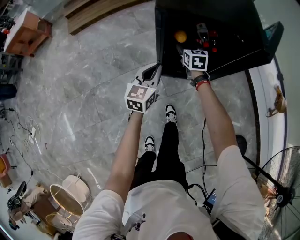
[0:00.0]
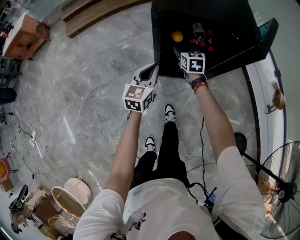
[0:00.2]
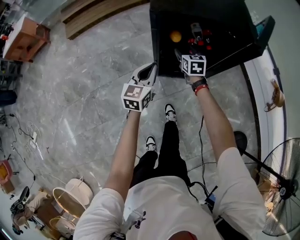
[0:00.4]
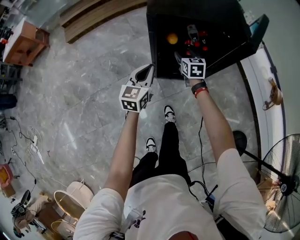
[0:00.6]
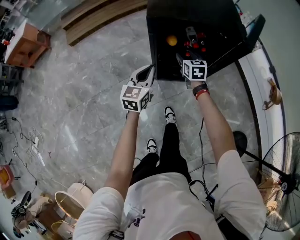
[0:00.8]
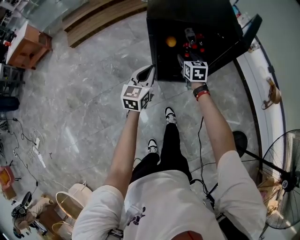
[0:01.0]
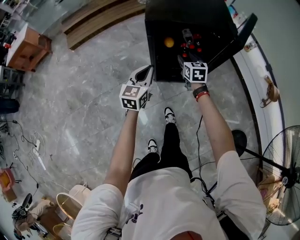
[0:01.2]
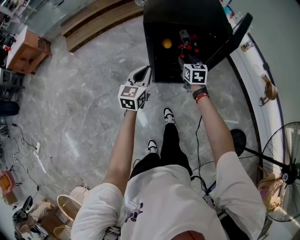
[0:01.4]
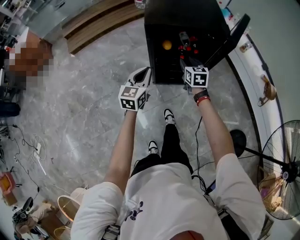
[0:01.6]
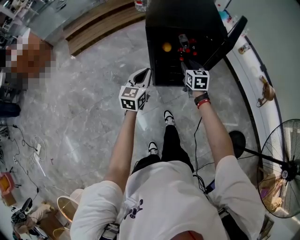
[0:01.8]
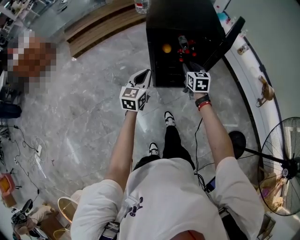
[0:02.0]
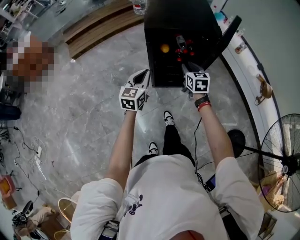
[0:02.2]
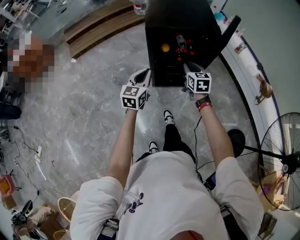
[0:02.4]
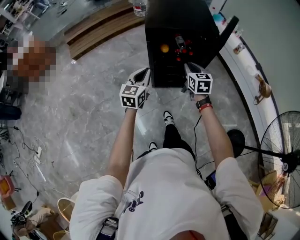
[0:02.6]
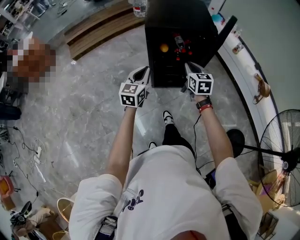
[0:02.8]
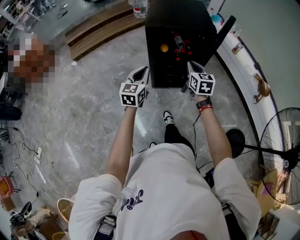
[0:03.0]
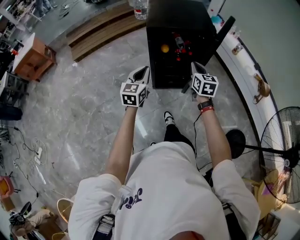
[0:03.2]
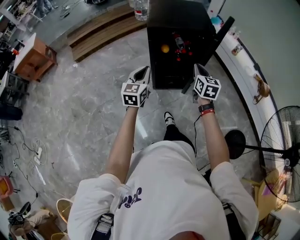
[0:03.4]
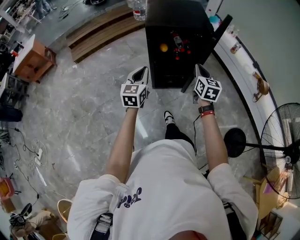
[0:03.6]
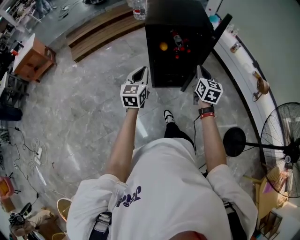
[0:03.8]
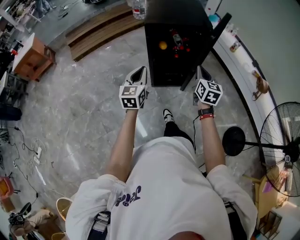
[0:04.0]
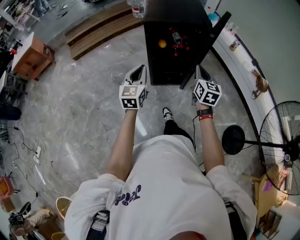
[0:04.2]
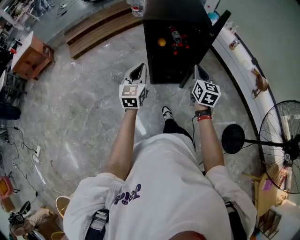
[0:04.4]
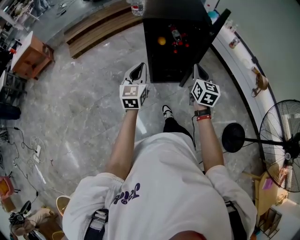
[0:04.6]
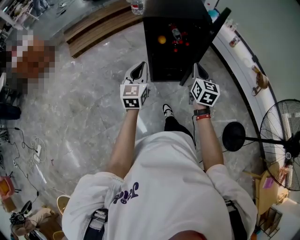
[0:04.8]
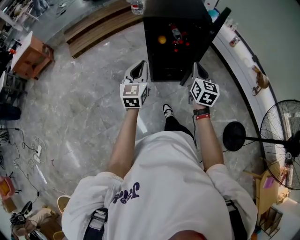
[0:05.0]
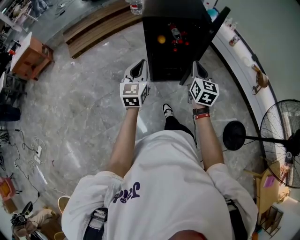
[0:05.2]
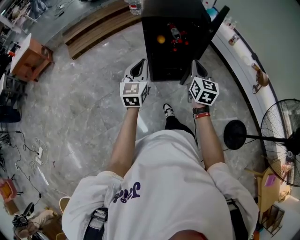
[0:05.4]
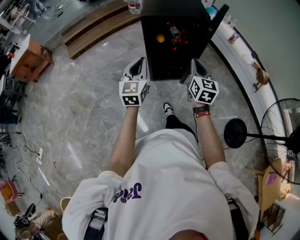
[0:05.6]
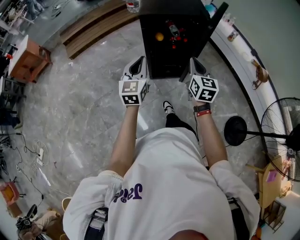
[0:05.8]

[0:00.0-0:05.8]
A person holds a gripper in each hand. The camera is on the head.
0:00.0 to 0:01.4: The right gripper is displaced backward, upward and to the right by about 20 cm, and closes its fingers. The left gripper is displaced upward and backward by some 10 cm.
0:01.4 to 0:02.8: The left gripper is displaced upward and backward by about 10 cm; the right gripper moves backward and upward, roughly 15 cm, and closes its fingers.
0:02.8 to 0:04.4: The left gripper goes about 10 cm backward. The right gripper goes roughly 15 cm backward and to the right.
0:04.4 to 0:05.8: There are only small adjustments of the grippers.

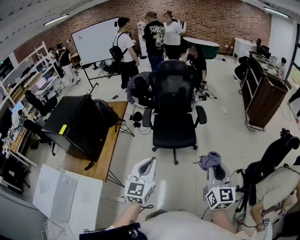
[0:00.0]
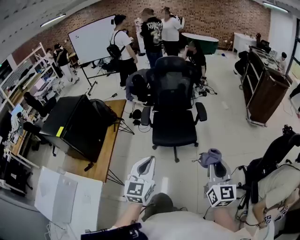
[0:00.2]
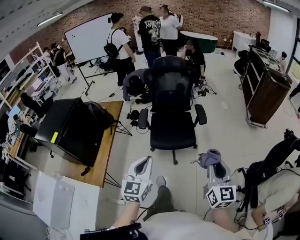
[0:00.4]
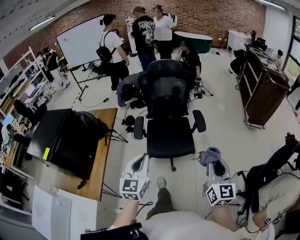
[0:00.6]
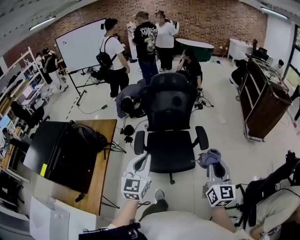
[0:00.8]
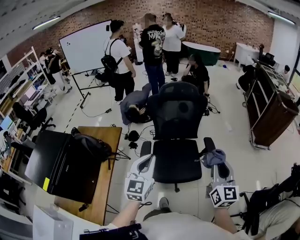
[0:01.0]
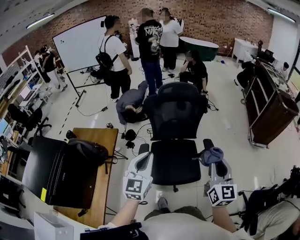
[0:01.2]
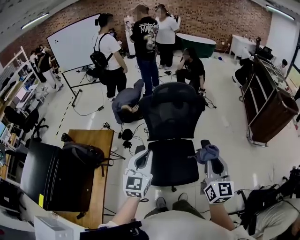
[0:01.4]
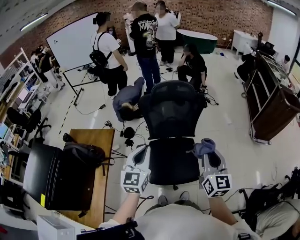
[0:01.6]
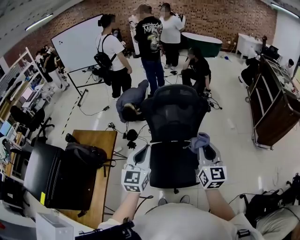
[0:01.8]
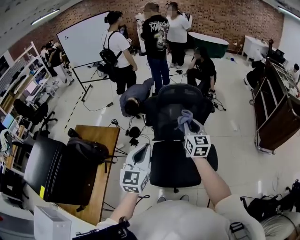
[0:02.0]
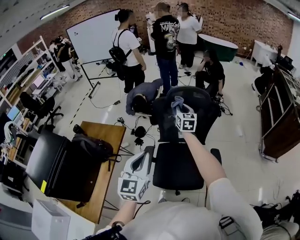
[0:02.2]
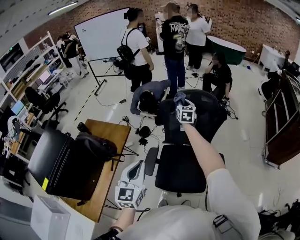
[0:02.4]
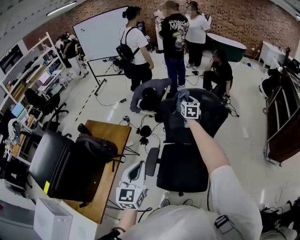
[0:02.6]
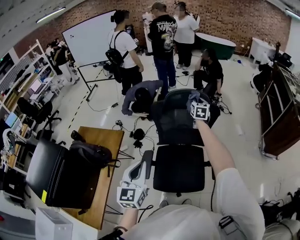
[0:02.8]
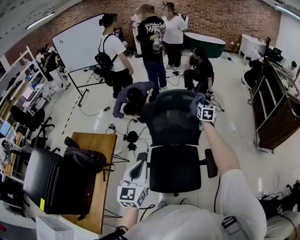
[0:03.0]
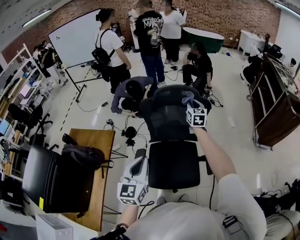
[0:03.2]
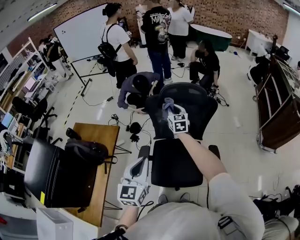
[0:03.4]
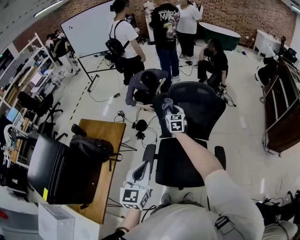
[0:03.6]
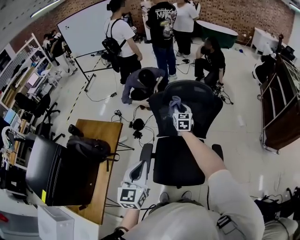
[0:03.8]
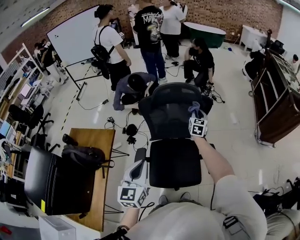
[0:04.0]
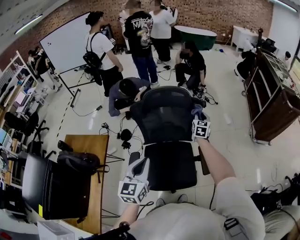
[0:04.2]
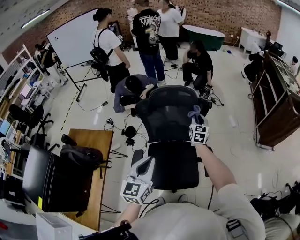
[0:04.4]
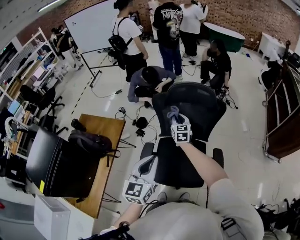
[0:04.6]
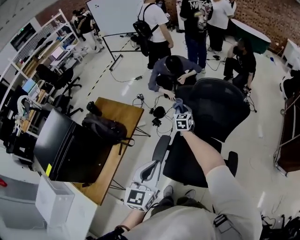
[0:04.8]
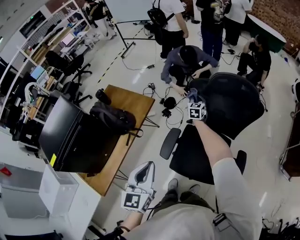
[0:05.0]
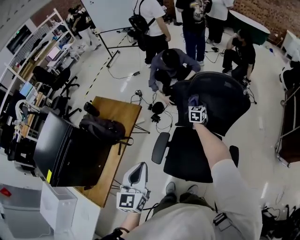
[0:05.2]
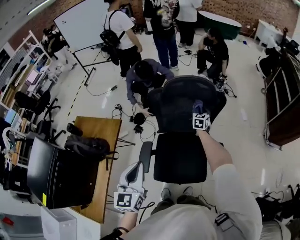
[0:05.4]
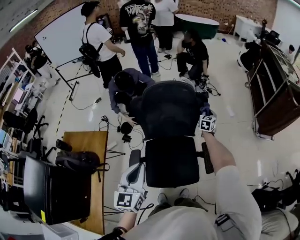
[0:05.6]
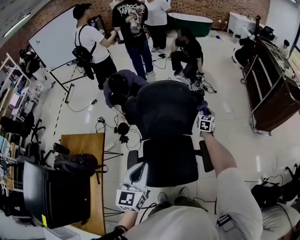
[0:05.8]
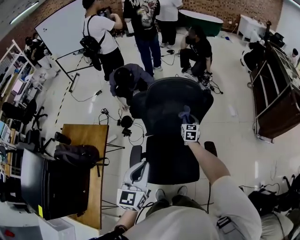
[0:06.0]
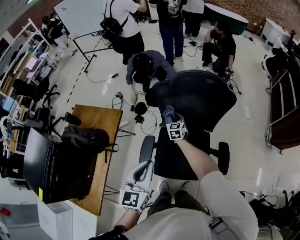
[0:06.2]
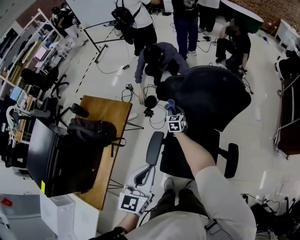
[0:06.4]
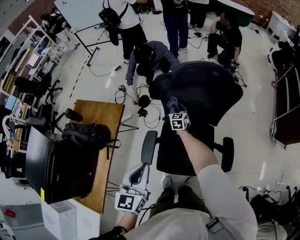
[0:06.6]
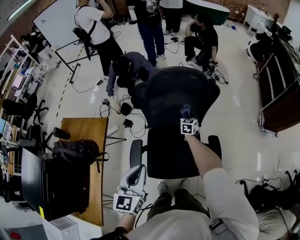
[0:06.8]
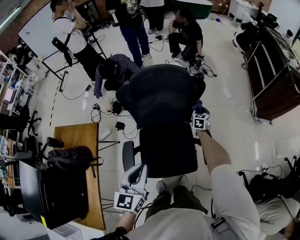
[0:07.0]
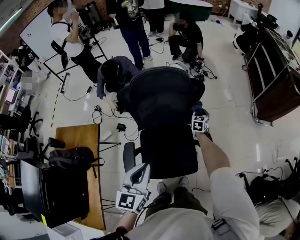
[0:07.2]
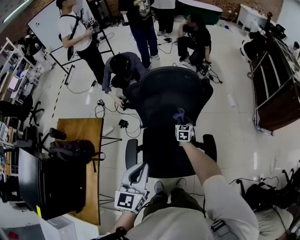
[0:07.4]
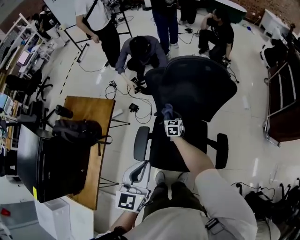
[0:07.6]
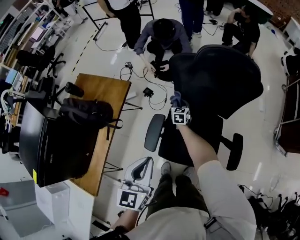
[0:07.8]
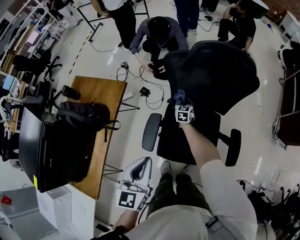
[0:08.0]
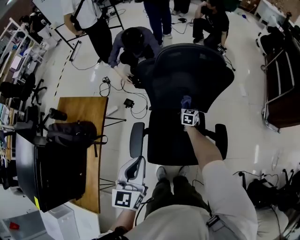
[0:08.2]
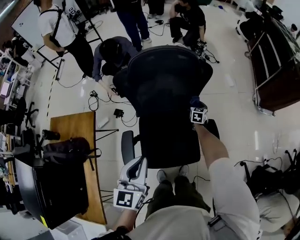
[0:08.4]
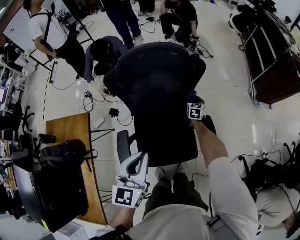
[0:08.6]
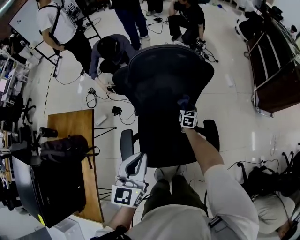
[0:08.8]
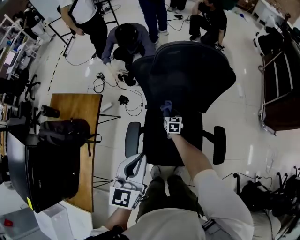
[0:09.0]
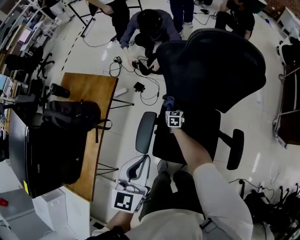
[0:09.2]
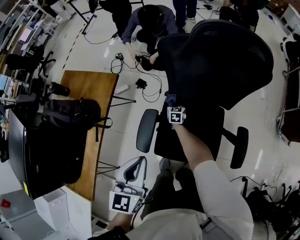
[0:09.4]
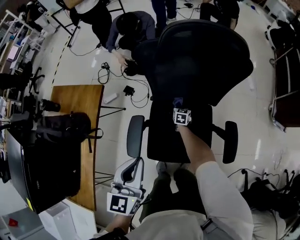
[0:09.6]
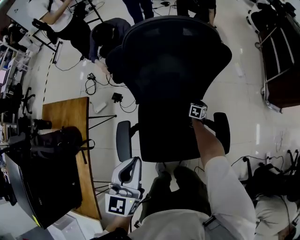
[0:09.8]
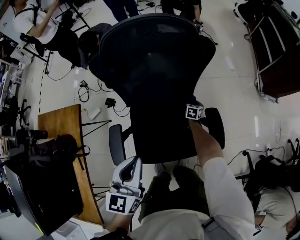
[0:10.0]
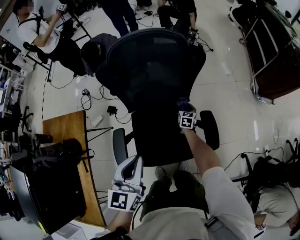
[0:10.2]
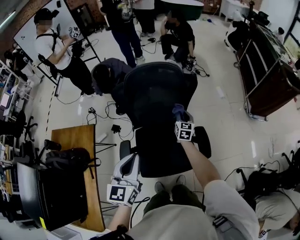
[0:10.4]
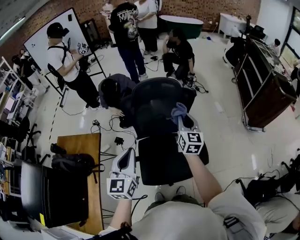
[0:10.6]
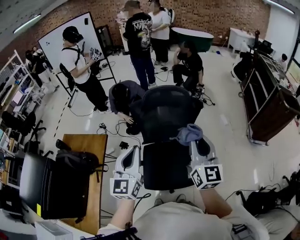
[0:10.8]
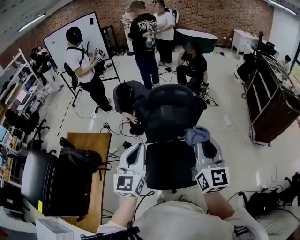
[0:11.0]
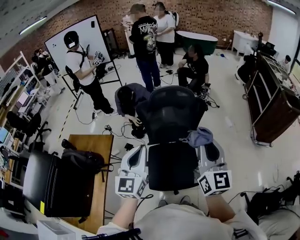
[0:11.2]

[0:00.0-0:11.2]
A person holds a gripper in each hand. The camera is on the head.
0:00.0 to 0:01.6: The two grippers travel together, forward, about 60 cm.
0:01.6 to 0:03.2: The right gripper shifts roughly 40 cm forward, and rotates some 20 degrees.
0:03.2 to 0:04.8: The left gripper travels to the right by about 5 cm; the right gripper goes left and right, about 30 cm each way, reversing 2 times.
0:04.8 to 0:06.4: The right gripper shifts some 10 cm downward; the left gripper shifts by approximately 10 cm.
0:06.4 to 0:08.0: The left gripper changes place by about 10 cm.
0:08.0 to 0:09.6: The left gripper heads downward, covering some 5 cm; the right gripper is displaced downward by approximately 20 cm.
0:09.6 to 0:11.2: The right gripper heads upward and backward, covering approximately 90 cm, and angles its fingers upward, by roughly 60 degrees. The left gripper shifts roughly 30 cm backward and upward, and turns by approximately 20 degrees.

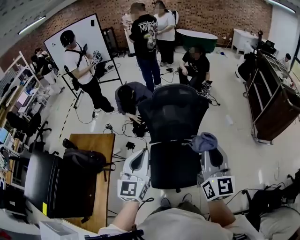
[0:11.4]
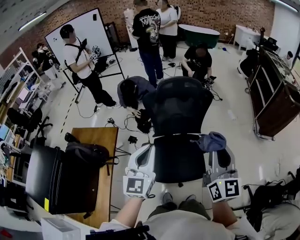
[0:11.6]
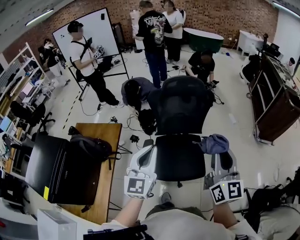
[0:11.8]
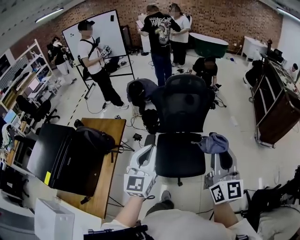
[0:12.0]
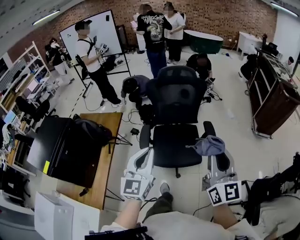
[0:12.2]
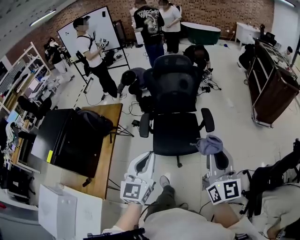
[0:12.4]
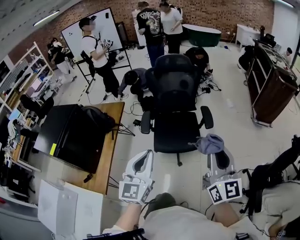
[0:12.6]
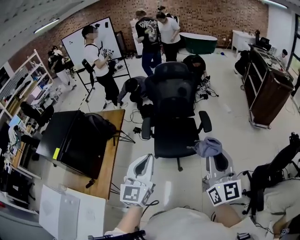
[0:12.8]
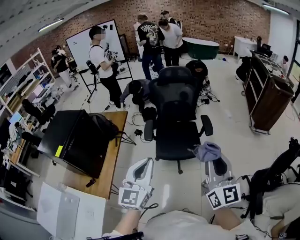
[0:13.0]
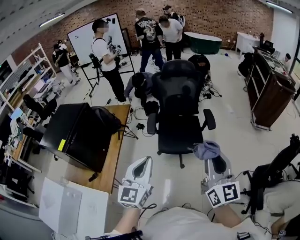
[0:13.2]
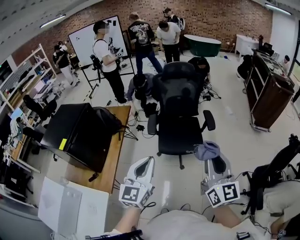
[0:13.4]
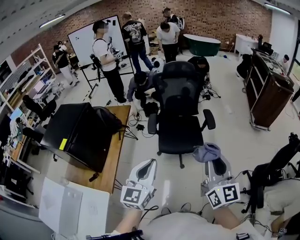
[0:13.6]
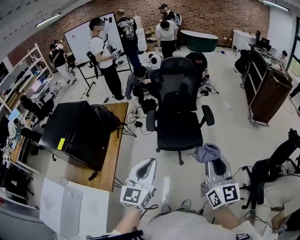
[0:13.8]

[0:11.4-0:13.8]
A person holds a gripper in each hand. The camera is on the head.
0:11.4 to 0:12.6: The grippers both shift backward by some 40 cm.
0:12.6 to 0:13.8: Both grippers move backward and to the left, some 15 cm.

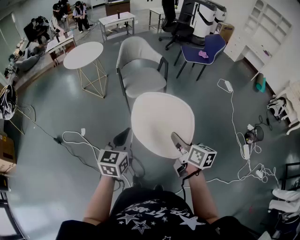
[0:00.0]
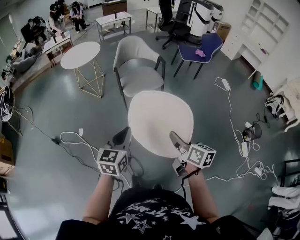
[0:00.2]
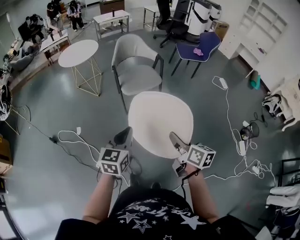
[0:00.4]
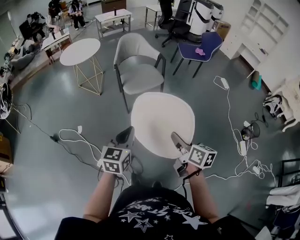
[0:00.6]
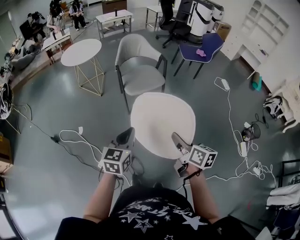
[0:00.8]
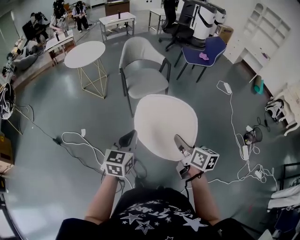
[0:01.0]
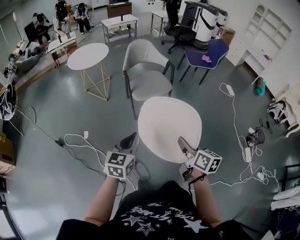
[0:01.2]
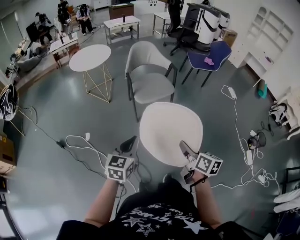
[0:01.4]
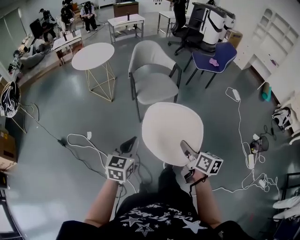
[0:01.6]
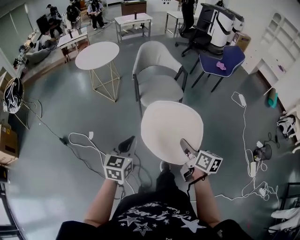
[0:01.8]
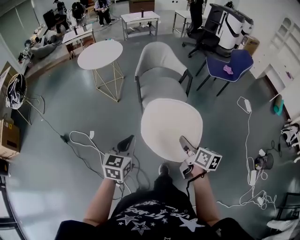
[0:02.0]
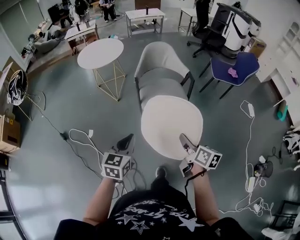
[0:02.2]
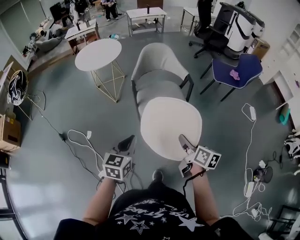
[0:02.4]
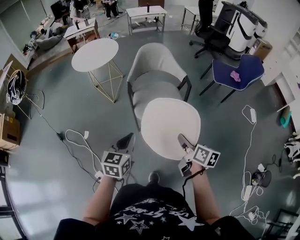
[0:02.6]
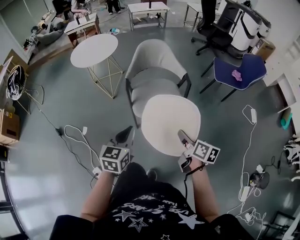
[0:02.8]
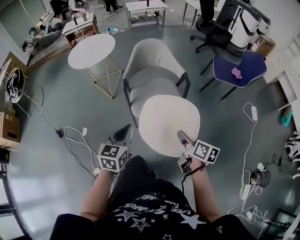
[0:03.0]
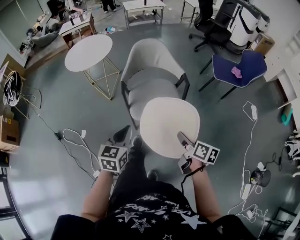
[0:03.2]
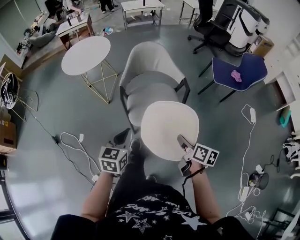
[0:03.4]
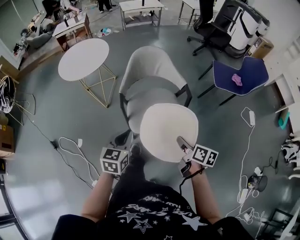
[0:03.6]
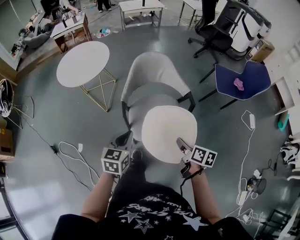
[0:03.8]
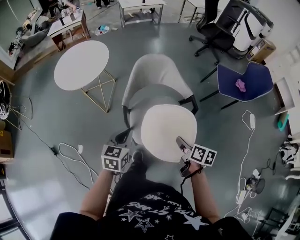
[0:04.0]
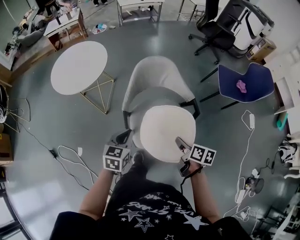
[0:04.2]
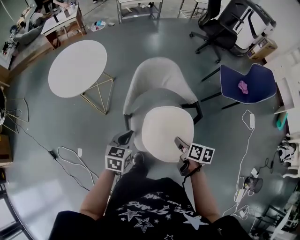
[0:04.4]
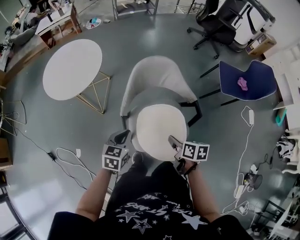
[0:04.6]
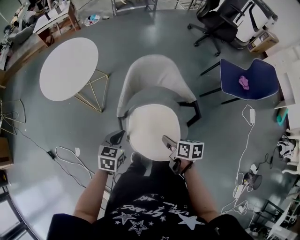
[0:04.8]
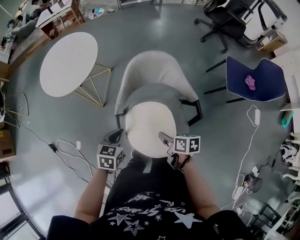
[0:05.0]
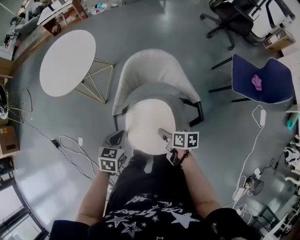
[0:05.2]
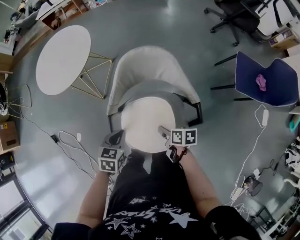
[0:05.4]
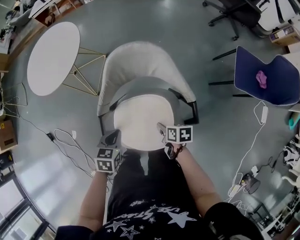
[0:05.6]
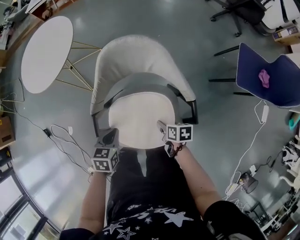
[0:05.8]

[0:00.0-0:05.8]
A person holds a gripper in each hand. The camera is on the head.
0:00.0 to 0:01.4: The right gripper moves roughly 5 cm. Meanwhile the left gripper moves to the left, roughly 5 cm.
0:01.4 to 0:02.8: Both grippers move forward and to the right, approximately 35 cm.
0:02.8 to 0:04.4: The grippers both shift forward by about 30 cm.
0:04.4 to 0:05.8: The left gripper travels downward and to the right by about 15 cm, and changes its angle by approximately 20 degrees. The right gripper shifts approximately 20 cm downward and forward, and rotates some 30 degrees.
